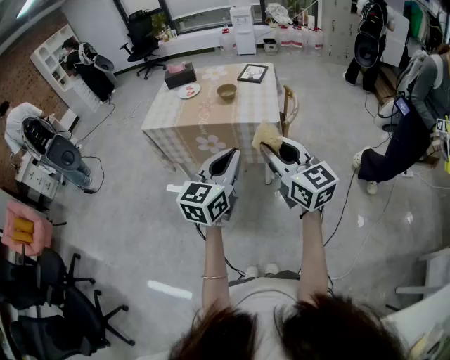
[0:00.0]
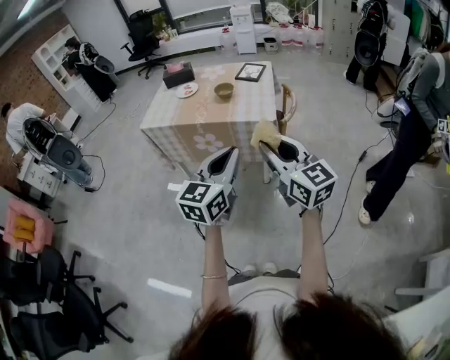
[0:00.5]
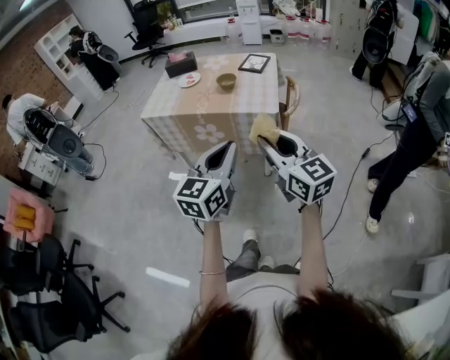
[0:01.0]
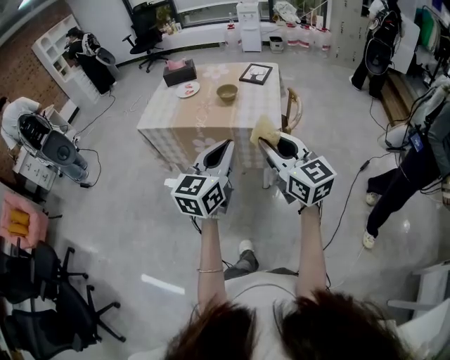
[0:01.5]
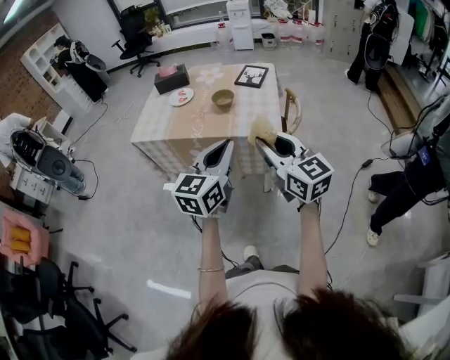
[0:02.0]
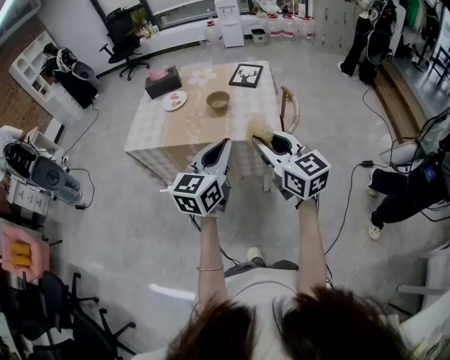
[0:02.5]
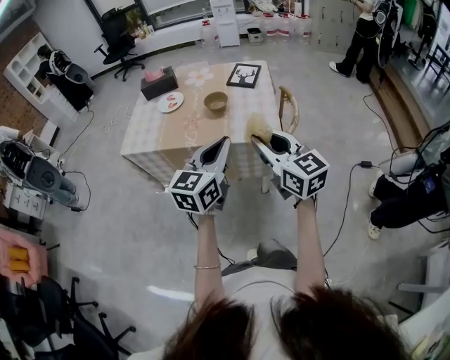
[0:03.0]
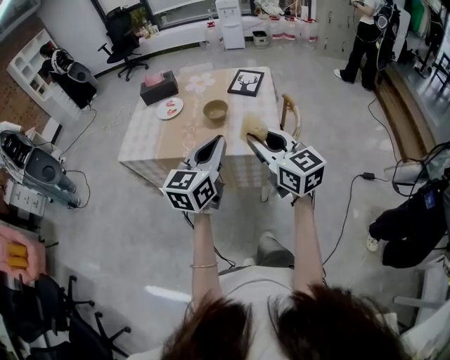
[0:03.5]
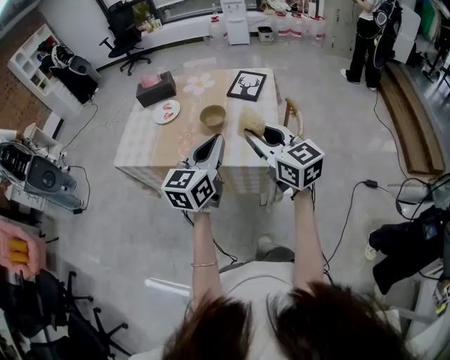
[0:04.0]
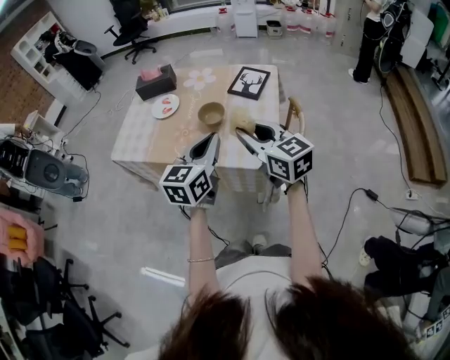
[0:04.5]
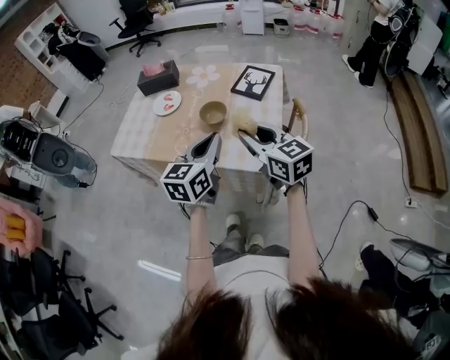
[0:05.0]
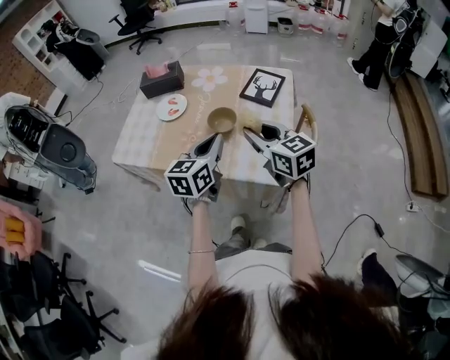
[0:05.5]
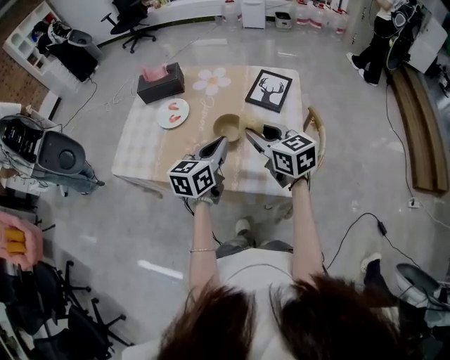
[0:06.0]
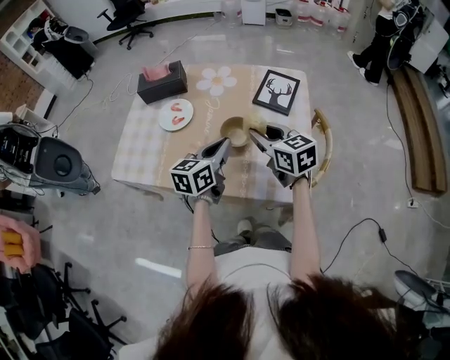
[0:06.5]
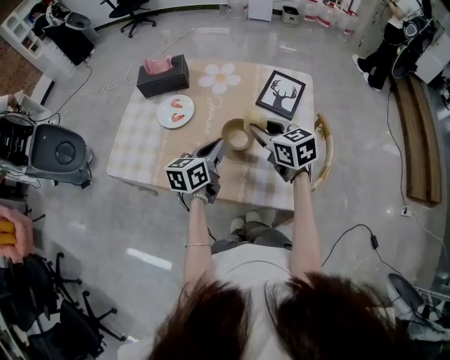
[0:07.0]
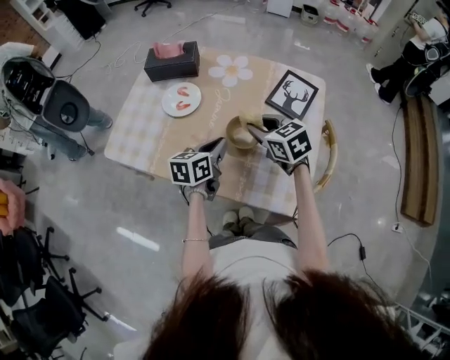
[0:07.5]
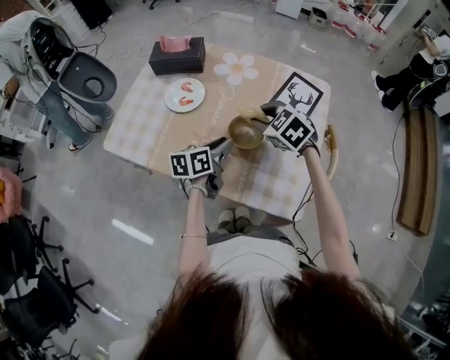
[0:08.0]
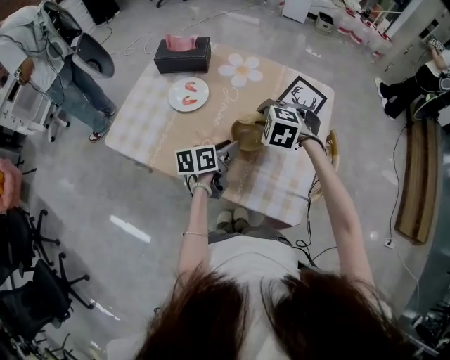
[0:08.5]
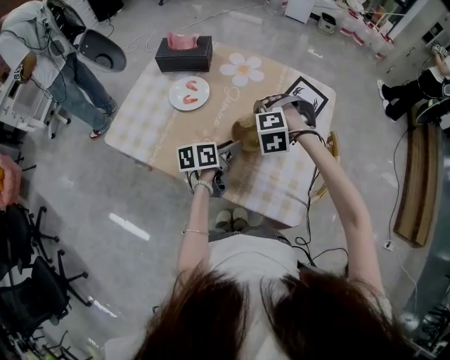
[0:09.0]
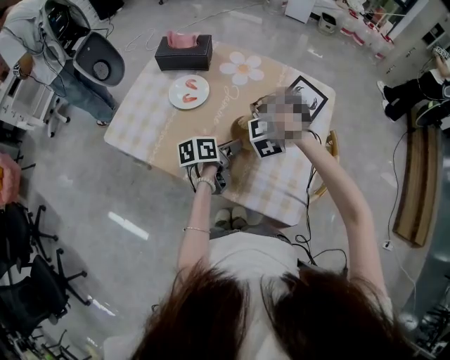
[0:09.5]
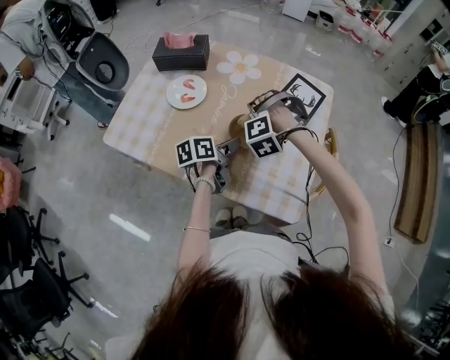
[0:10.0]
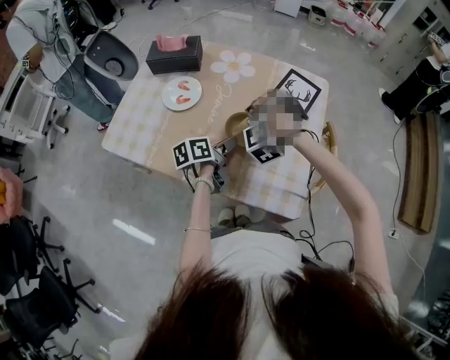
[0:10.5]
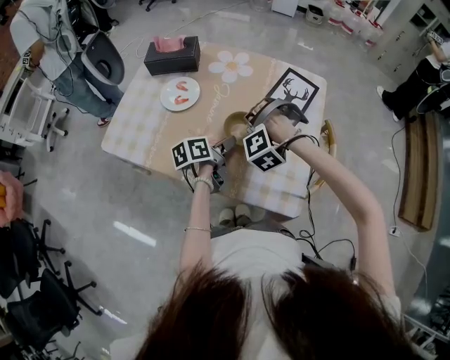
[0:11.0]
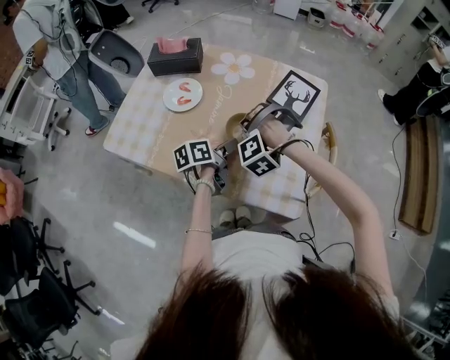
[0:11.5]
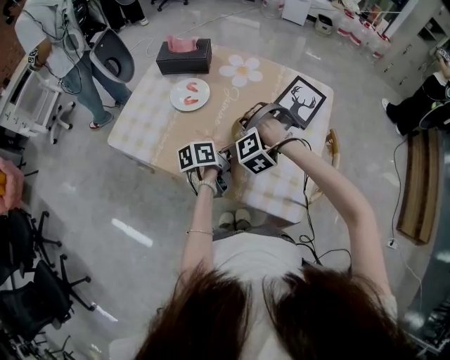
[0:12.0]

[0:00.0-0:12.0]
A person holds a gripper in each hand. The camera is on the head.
0:00.0 to 0:02.0: The grippers both shift forward by about 15 cm.
0:02.0 to 0:04.0: The two grippers go some 20 cm forward.
0:04.0 to 0:06.0: Both grippers move forward and downward, roughly 20 cm.
0:06.0 to 0:08.0: The right gripper moves forward, downward and to the left, roughly 15 cm, and tips its fingers downward by some 30 degrees. Meanwhile the left gripper heads downward and forward, covering some 15 cm, changes its angle by roughly 30 degrees, and opens up.
0:08.0 to 0:10.0: The right gripper travels downward by about 5 cm, and rolls counterclockwise, seen from behind, by about 70 degrees.
0:10.0 to 0:12.0: The right gripper ends up approximately 5 cm from where it was.

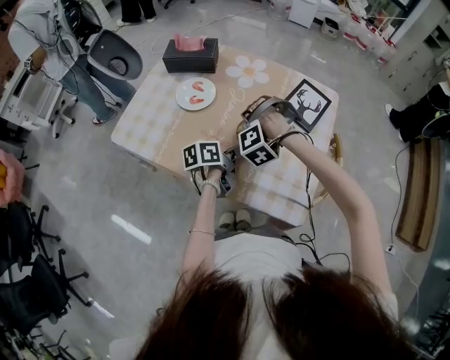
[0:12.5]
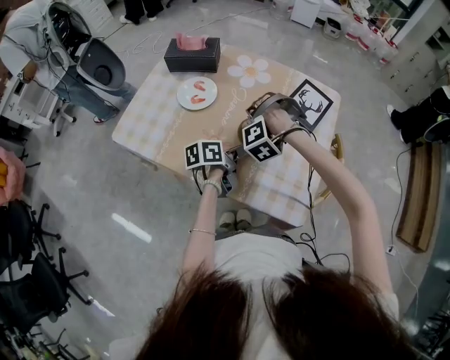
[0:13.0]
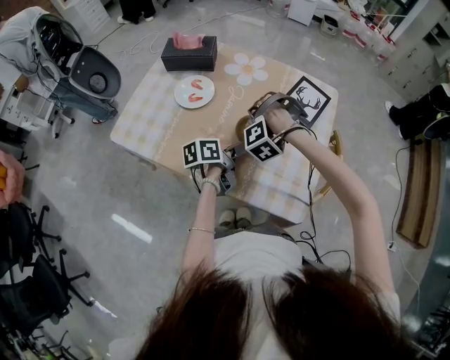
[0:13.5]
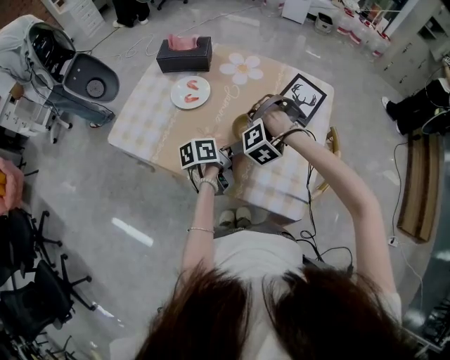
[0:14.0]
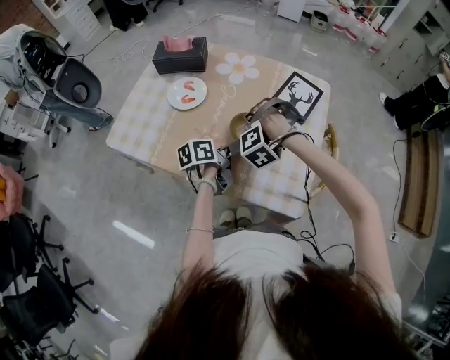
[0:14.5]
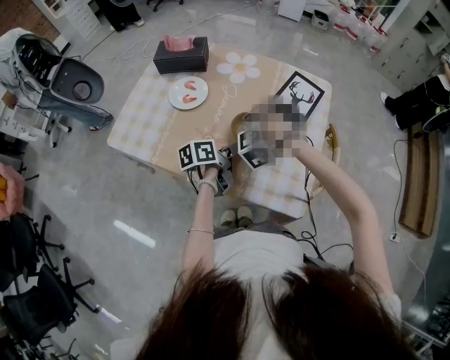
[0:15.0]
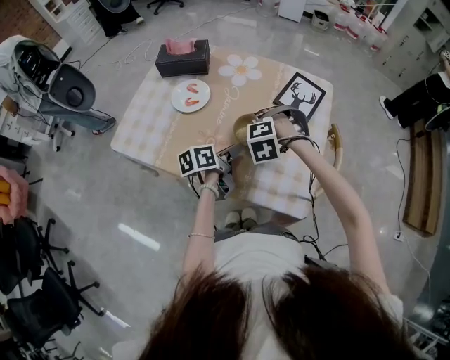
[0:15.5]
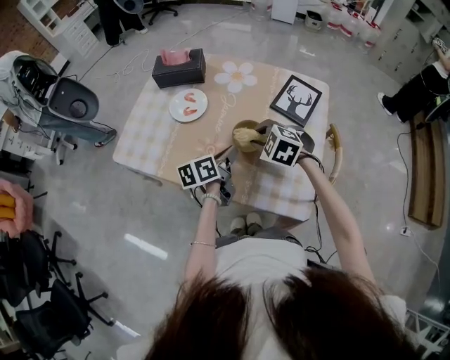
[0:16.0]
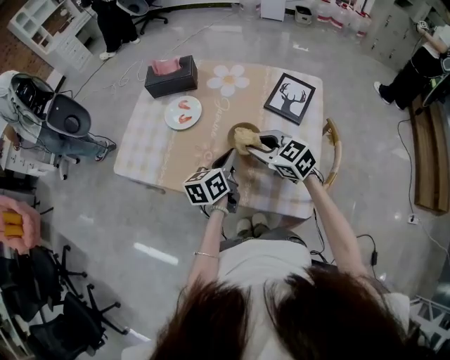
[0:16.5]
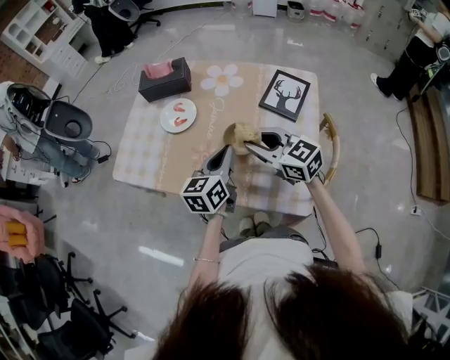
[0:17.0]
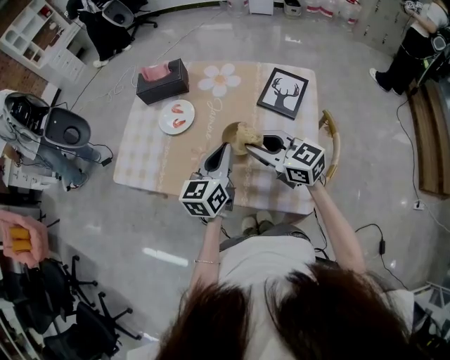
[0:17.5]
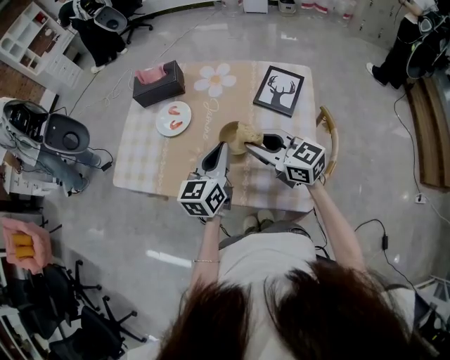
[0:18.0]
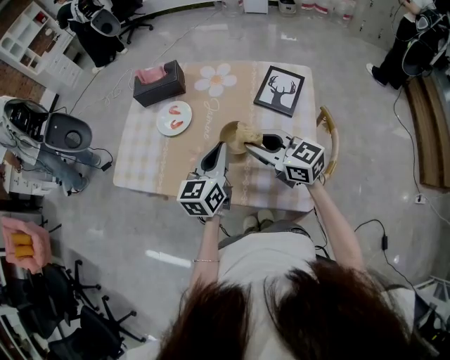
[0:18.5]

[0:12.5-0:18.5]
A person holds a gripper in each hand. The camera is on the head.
0:12.5 to 0:14.5: The grippers move only a little.
0:14.5 to 0:16.5: Both grippers move upward, roughly 5 cm. The left gripper changes its angle by approximately 30 degrees, while the right gripper tips its fingers upward by some 40 degrees.
0:16.5 to 0:18.5: The left gripper goes roughly 5 cm upward, and turns by about 20 degrees. The right gripper shifts by approximately 5 cm, and rotates about 20 degrees.

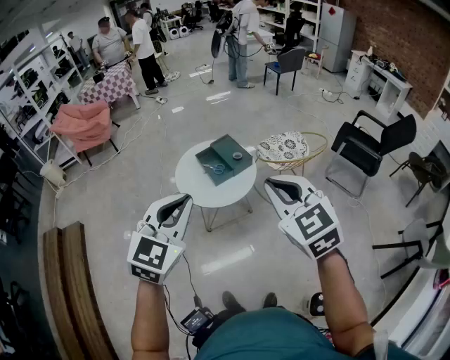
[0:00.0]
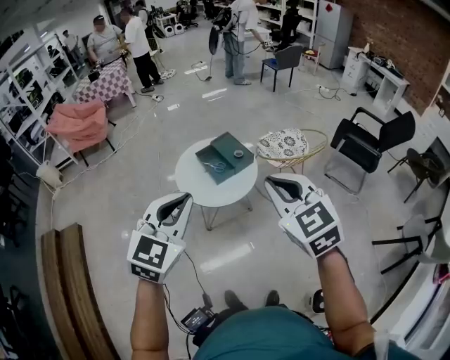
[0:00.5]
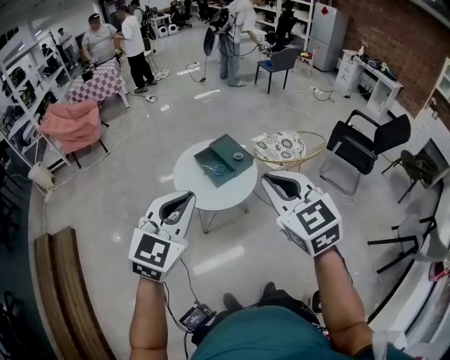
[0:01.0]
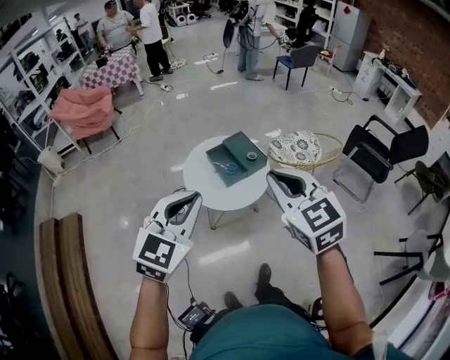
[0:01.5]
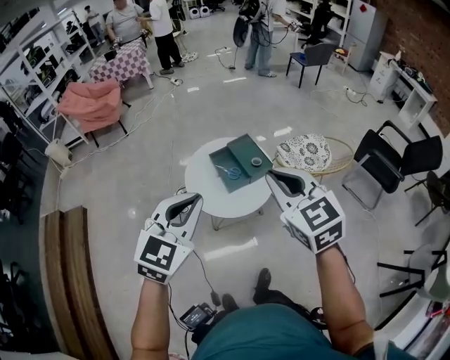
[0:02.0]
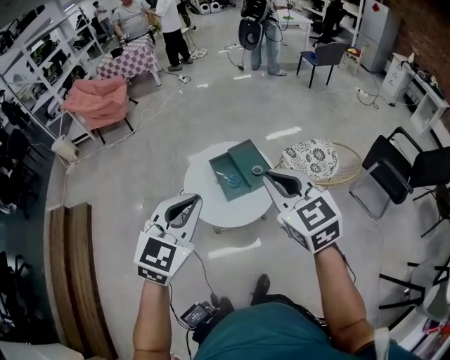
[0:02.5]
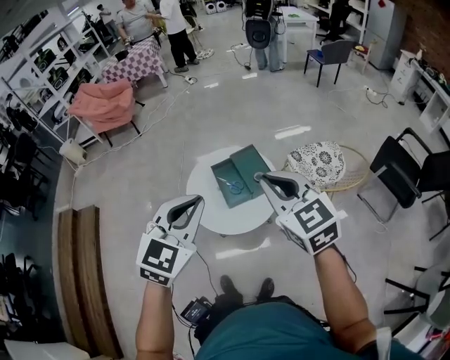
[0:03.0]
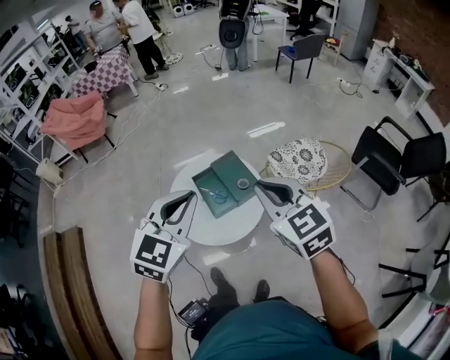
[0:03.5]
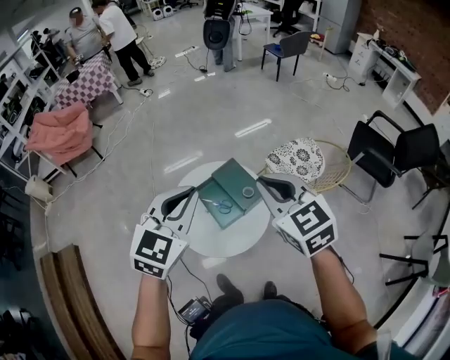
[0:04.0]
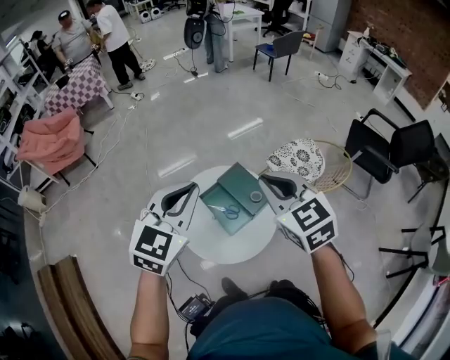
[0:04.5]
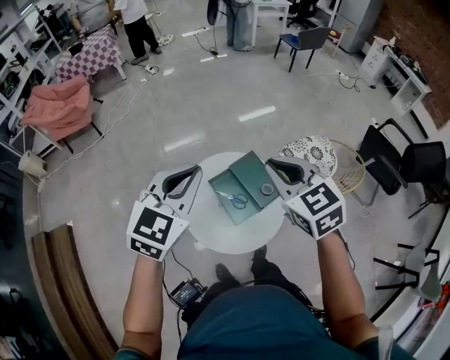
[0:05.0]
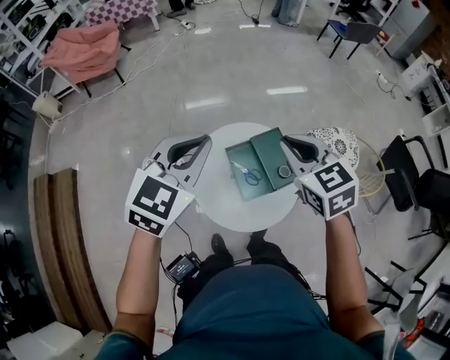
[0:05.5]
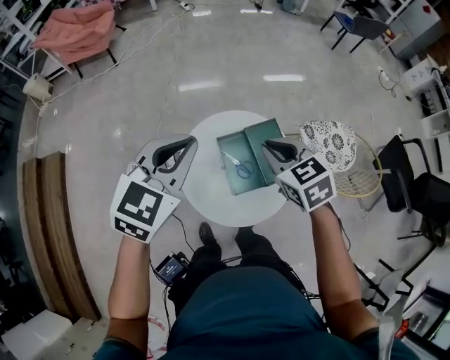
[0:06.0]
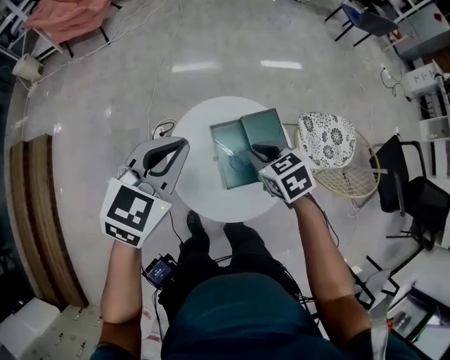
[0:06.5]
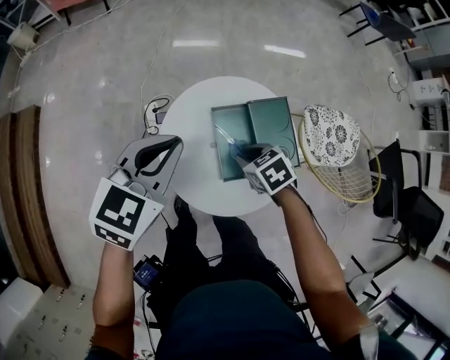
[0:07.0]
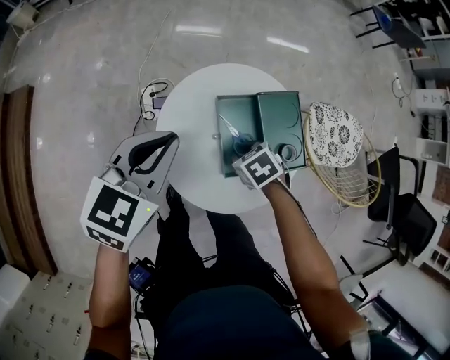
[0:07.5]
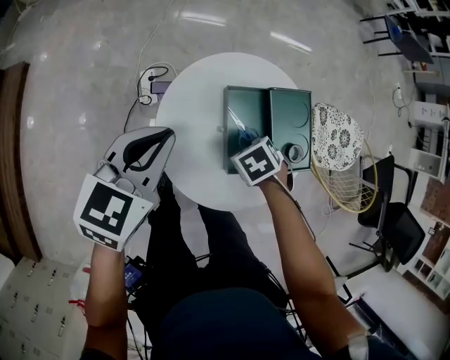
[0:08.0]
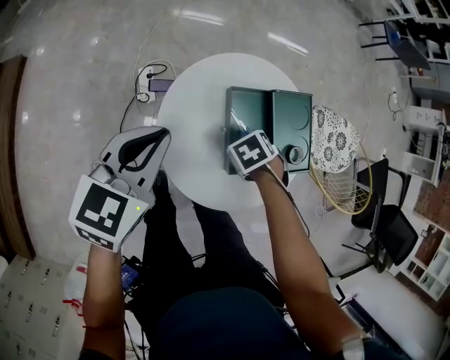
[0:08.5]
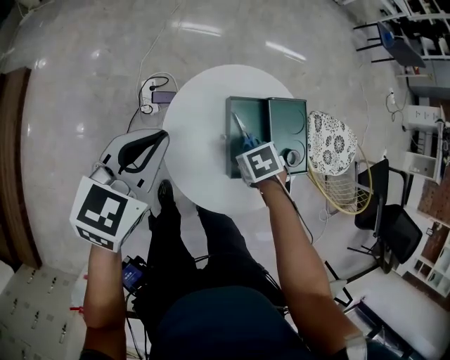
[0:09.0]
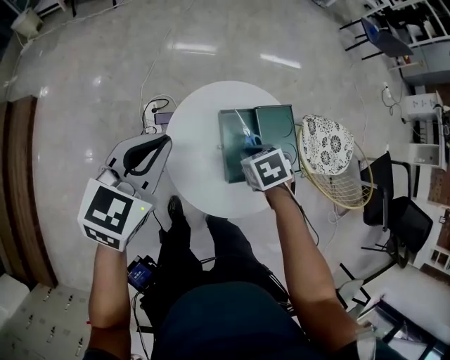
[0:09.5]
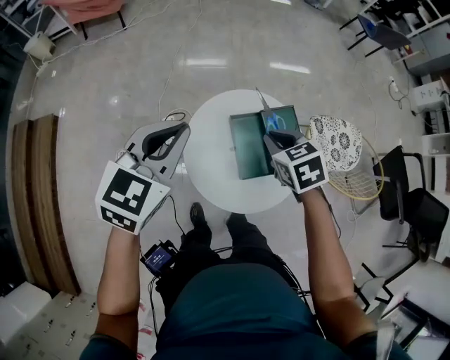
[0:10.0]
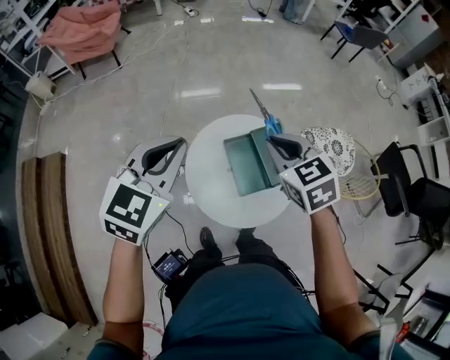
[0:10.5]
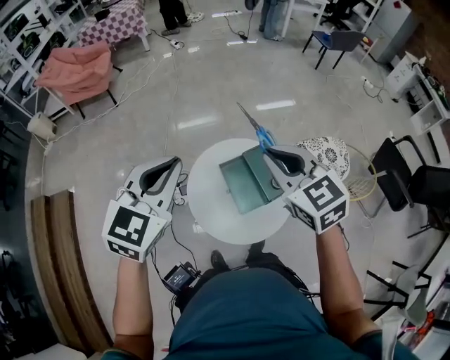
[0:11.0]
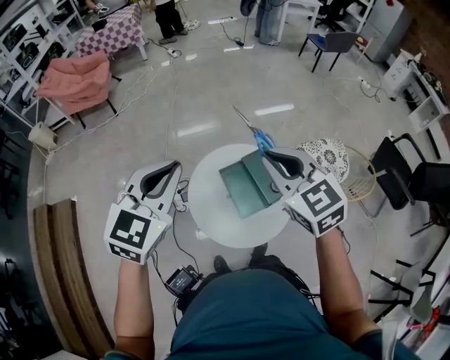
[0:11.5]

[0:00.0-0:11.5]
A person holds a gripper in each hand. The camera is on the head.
0:00.0 to 0:02.0: Both grippers travel together forward, some 20 cm.
0:02.0 to 0:04.0: The grippers both shift forward by about 30 cm.
0:04.0 to 0:06.0: The right gripper goes some 30 cm downward, forward and to the left, and rotates some 30 degrees; the left gripper is displaced to the left, forward and downward by some 25 cm.
0:06.0 to 0:07.5: The left gripper shifts about 25 cm downward. The right gripper moves downward, some 35 cm, and points its fingers about 30 degrees further downward.
0:07.5 to 0:09.5: Both grippers travel together upward, some 10 cm.
0:09.5 to 0:11.5: The left gripper moves upward, approximately 30 cm, and swivels some 20 degrees. Meanwhile the right gripper moves upward, approximately 50 cm, and points its fingers roughly 50 degrees further upward.
